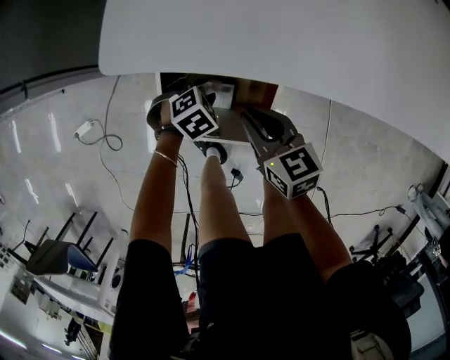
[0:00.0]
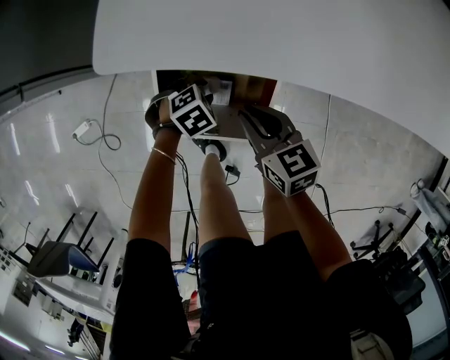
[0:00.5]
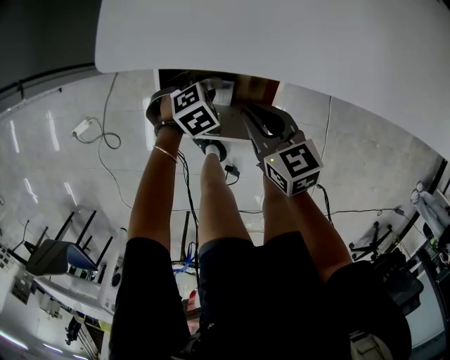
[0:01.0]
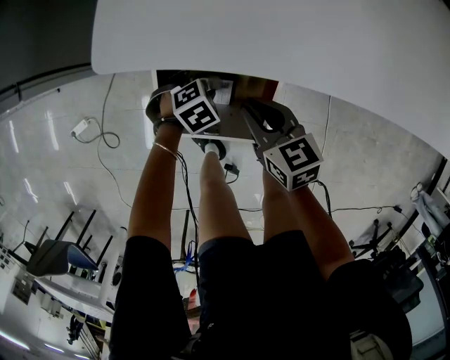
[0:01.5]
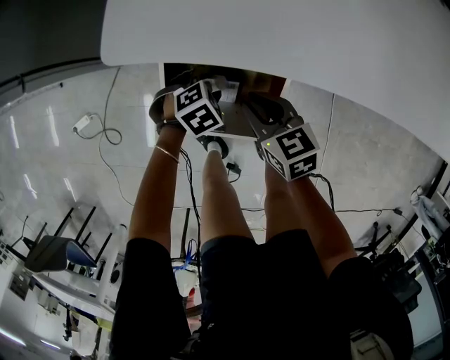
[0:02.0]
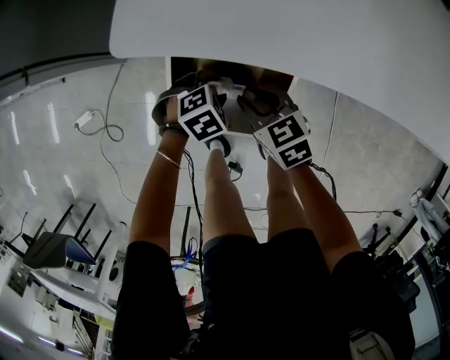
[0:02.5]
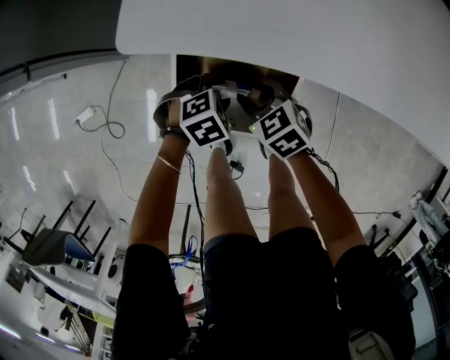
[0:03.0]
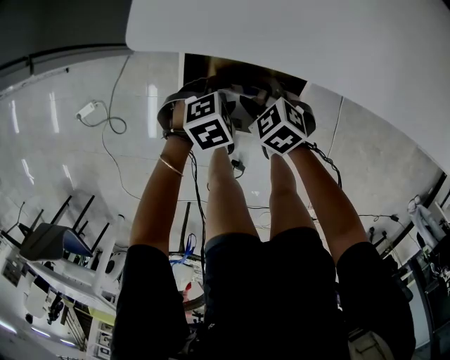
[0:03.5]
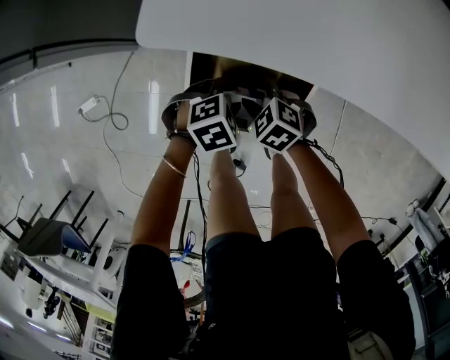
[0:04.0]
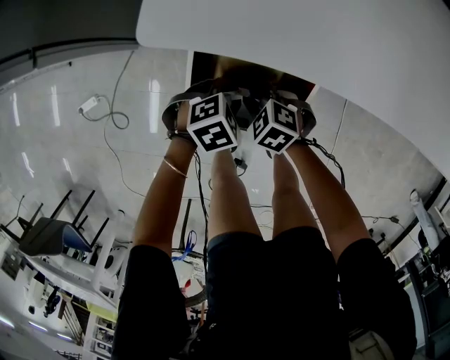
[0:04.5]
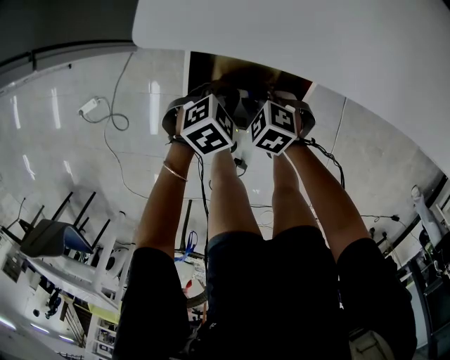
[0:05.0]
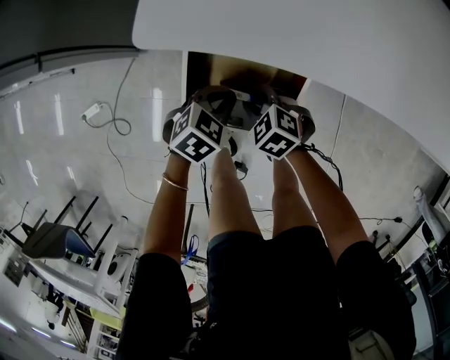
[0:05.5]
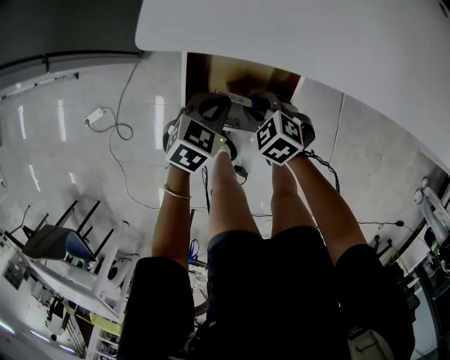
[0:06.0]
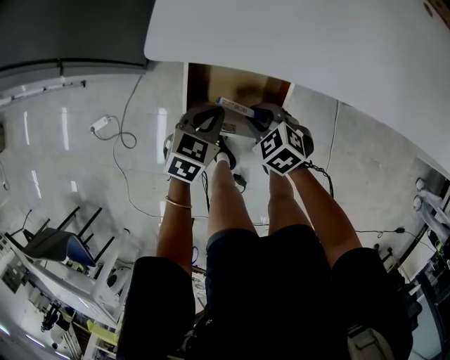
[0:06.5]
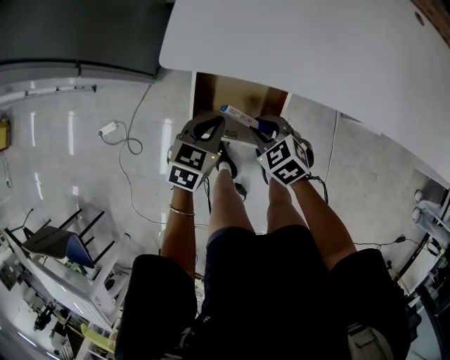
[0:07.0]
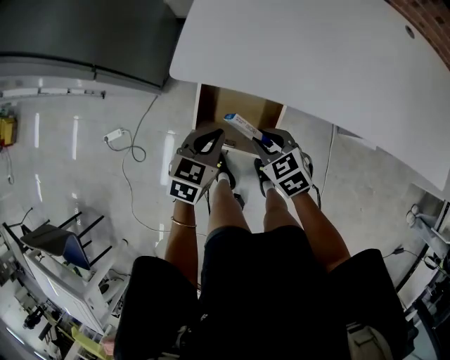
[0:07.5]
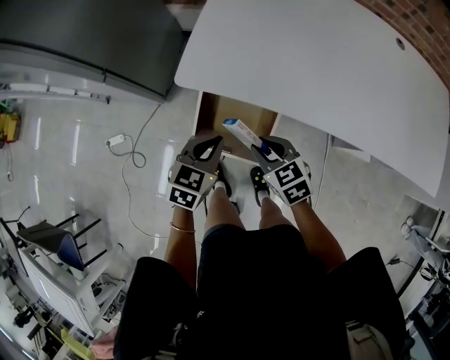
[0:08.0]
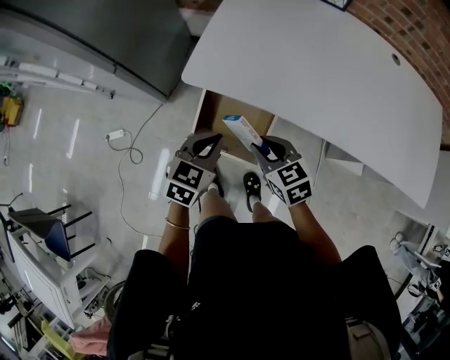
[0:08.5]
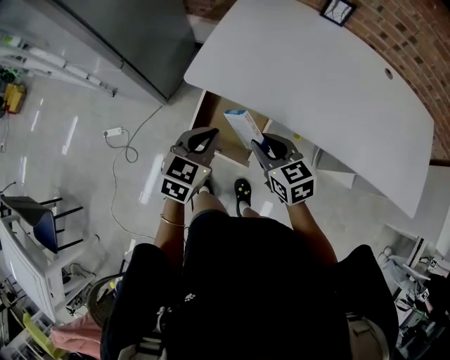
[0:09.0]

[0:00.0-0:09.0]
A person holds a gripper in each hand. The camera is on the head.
0:00.0 to 0:02.0: The grippers make only small movements.
0:02.0 to 0:04.5: The left gripper ends up about 5 cm from where it was. Meanwhile the right gripper is displaced downward by approximately 10 cm, and rotates around the line of its fingers by roughly 40 degrees, counterclockwise from behind.
0:04.5 to 0:07.0: The grippers both shift upward by approximately 15 cm. The left gripper turns by some 40 degrees, and closes its fingers; the right gripper turns by approximately 20 degrees.
0:07.0 to 0:09.0: Both grippers move upward, approximately 20 cm. The right gripper turns by approximately 20 degrees.

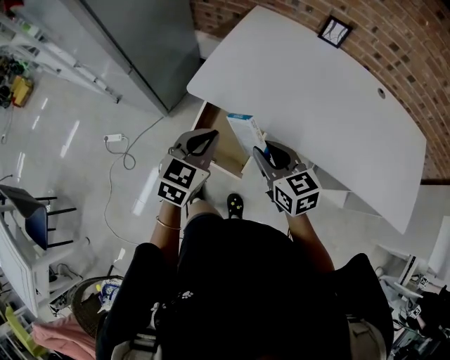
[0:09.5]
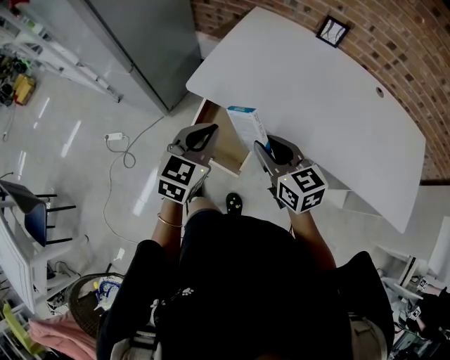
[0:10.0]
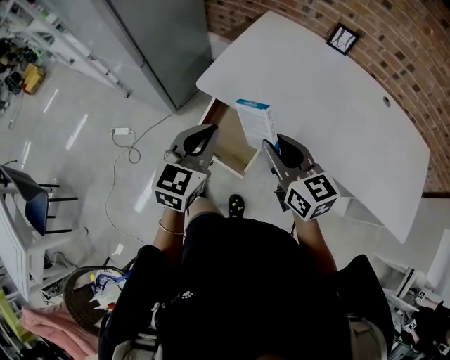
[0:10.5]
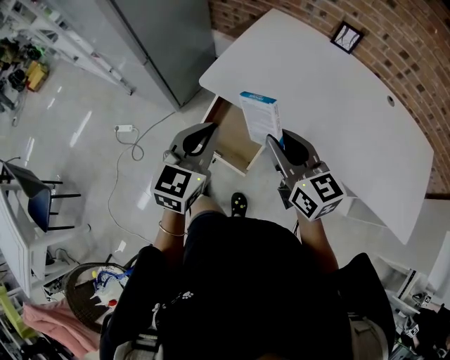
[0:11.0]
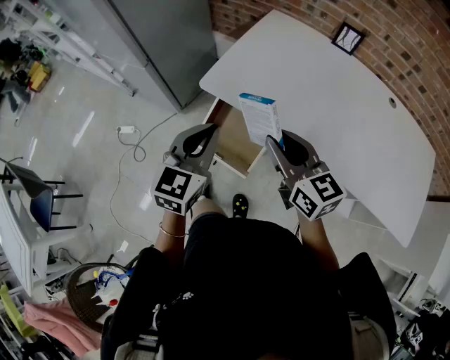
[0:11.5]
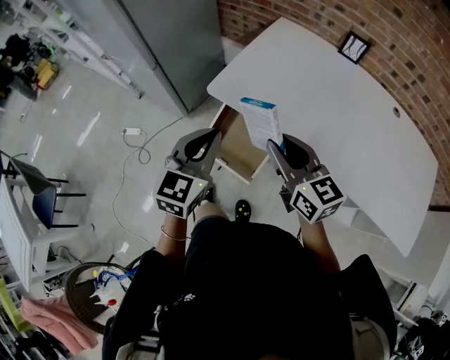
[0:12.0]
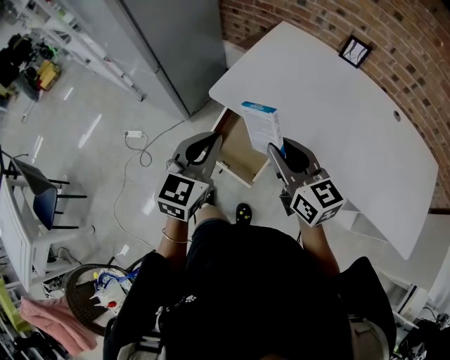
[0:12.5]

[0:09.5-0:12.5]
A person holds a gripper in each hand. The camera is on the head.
0:09.5 to 0:11.0: The grippers both shift upward by about 5 cm.
0:11.0 to 0:12.5: The grippers make only small movements.

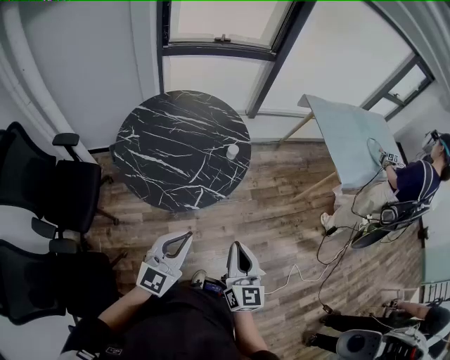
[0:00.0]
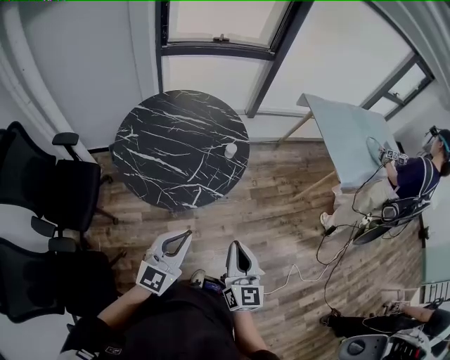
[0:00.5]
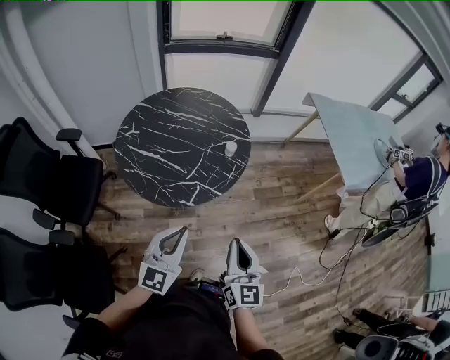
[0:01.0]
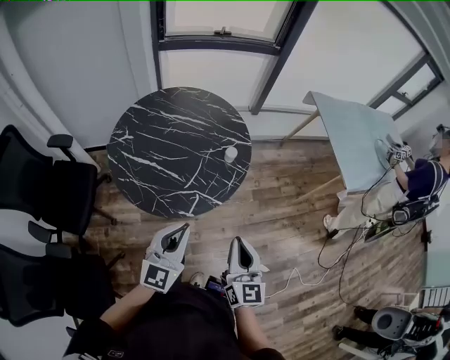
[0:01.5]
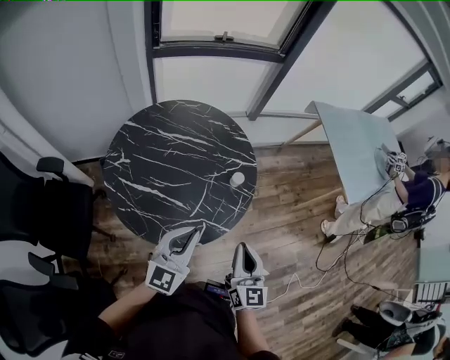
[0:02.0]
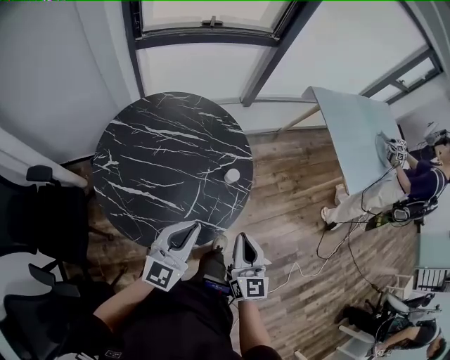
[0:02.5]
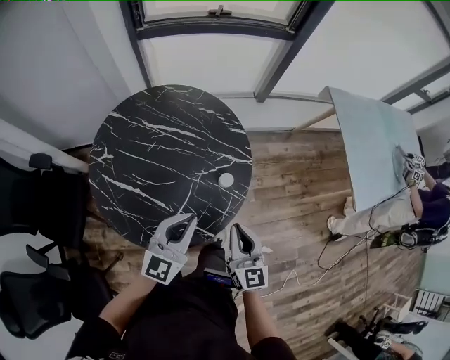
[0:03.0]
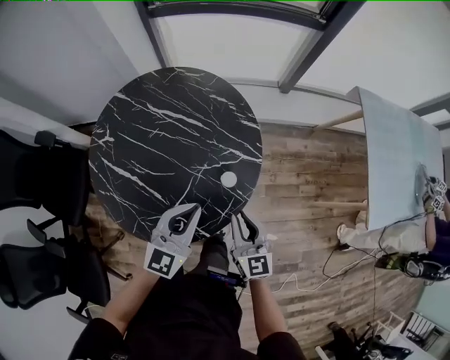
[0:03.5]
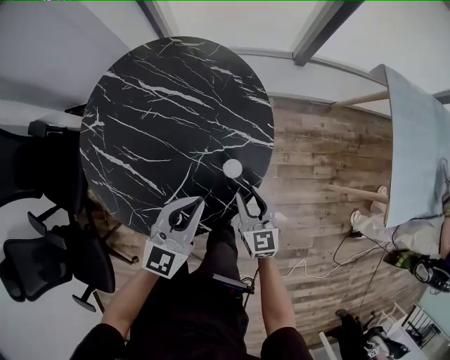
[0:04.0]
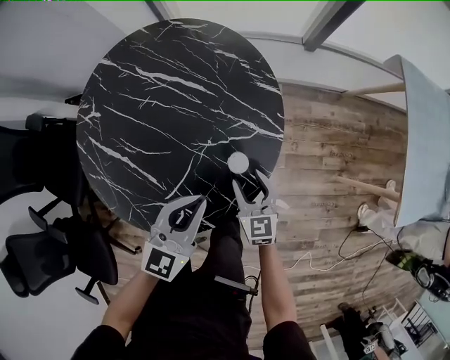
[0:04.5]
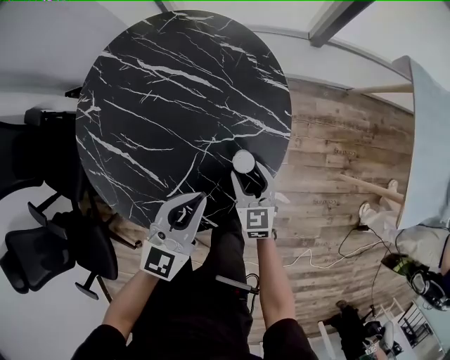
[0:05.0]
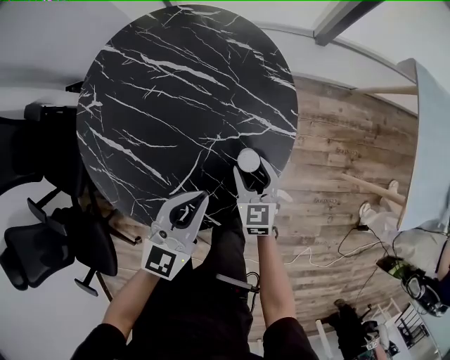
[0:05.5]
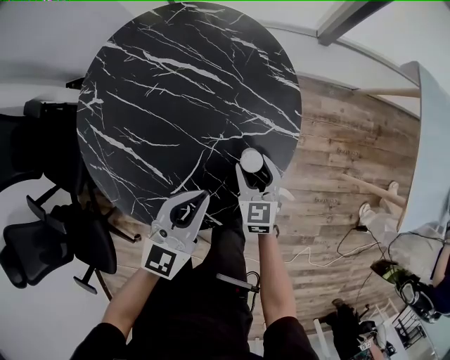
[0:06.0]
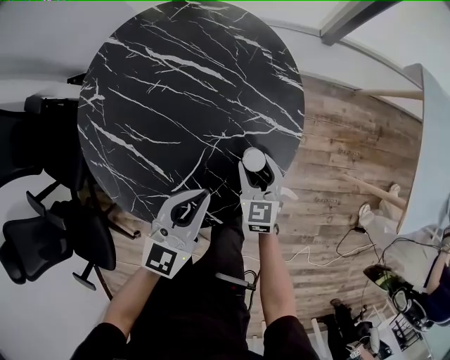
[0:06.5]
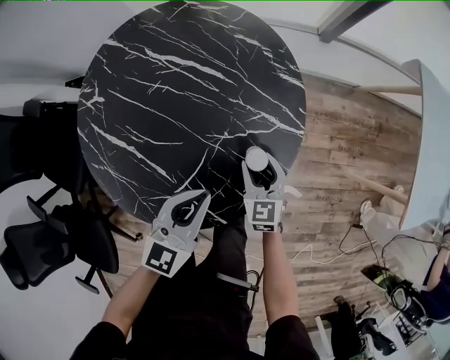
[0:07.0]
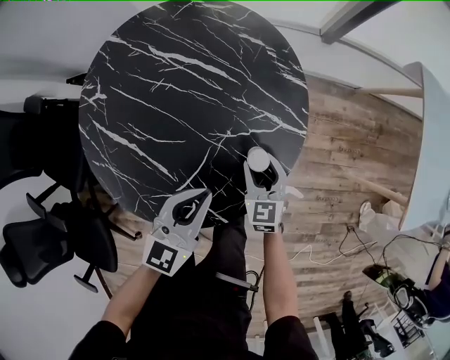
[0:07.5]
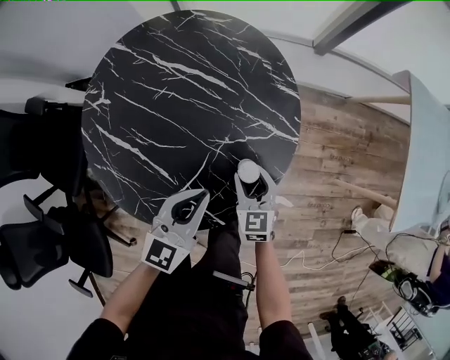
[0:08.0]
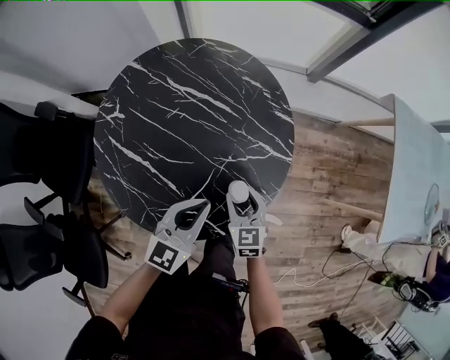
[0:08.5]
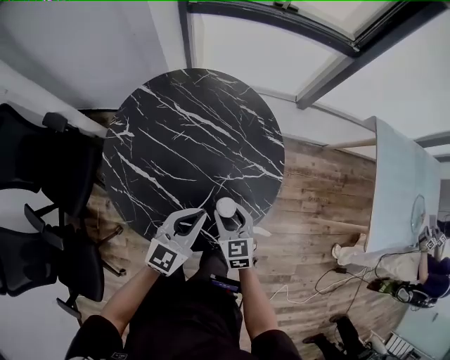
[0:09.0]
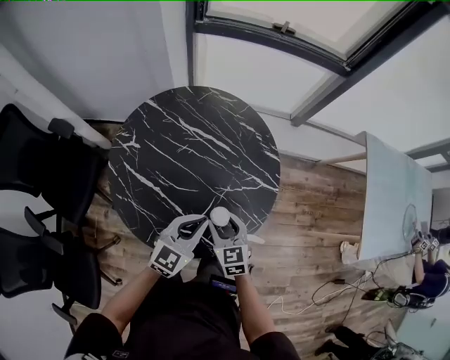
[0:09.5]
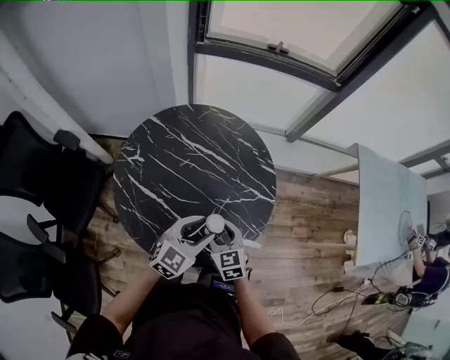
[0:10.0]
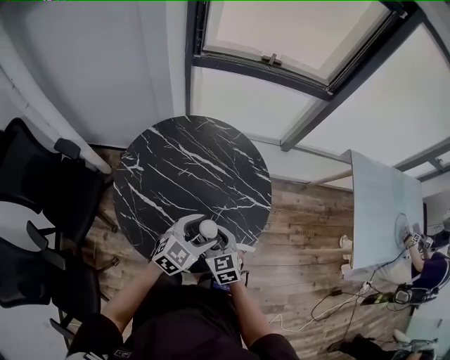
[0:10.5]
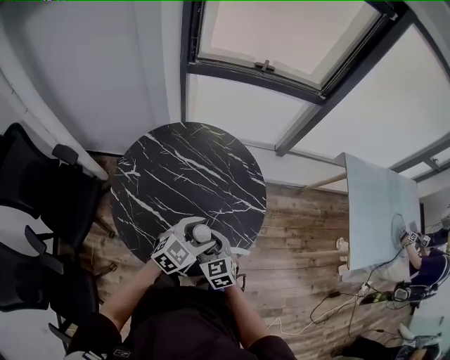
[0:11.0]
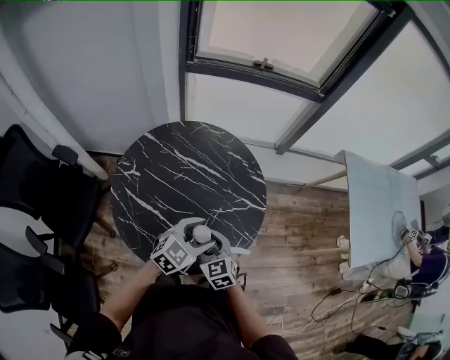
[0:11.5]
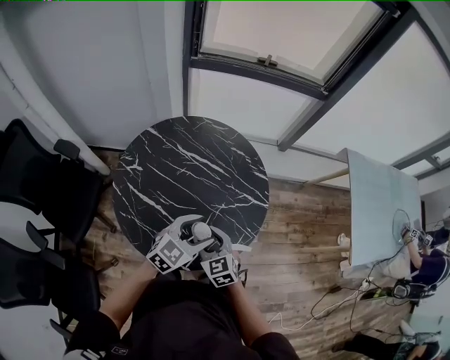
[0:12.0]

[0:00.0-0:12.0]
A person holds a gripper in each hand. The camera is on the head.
0:00.0 to 0:02.0: The grippers both shift forward by some 20 cm.
0:02.0 to 0:04.0: The right gripper shifts about 35 cm downward and forward, turns by roughly 30 degrees, and opens its fingers. Meanwhile the left gripper shifts some 25 cm forward, downward and to the right.
0:04.0 to 0:06.0: The right gripper heads downward and forward, covering roughly 10 cm, and opens its fingers.
0:06.0 to 0:08.0: The grippers stay close to where they were, moving slightly.
0:08.0 to 0:10.0: The right gripper moves upward and to the left, some 20 cm; the left gripper heads upward, covering about 10 cm, and opens.
0:10.0 to 0:12.0: The right gripper shifts by roughly 5 cm.

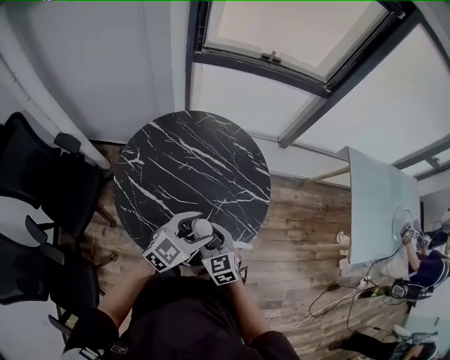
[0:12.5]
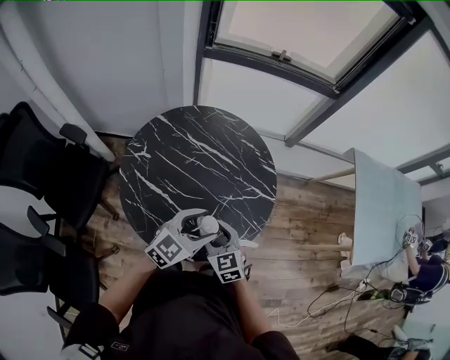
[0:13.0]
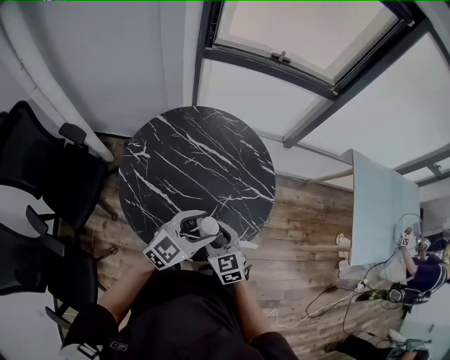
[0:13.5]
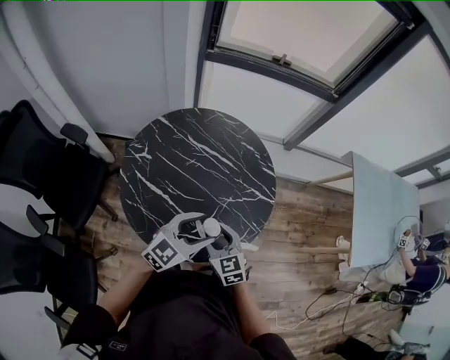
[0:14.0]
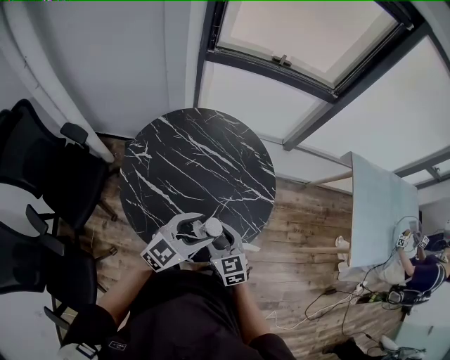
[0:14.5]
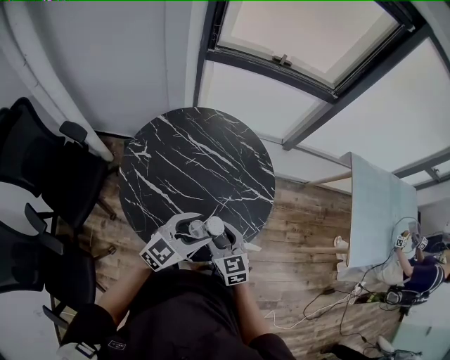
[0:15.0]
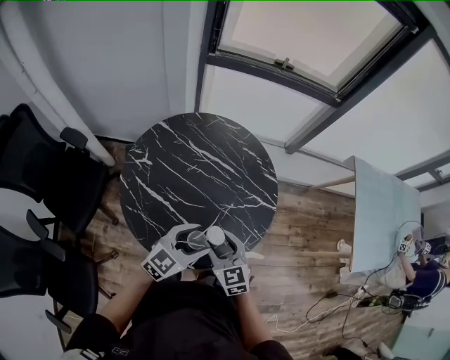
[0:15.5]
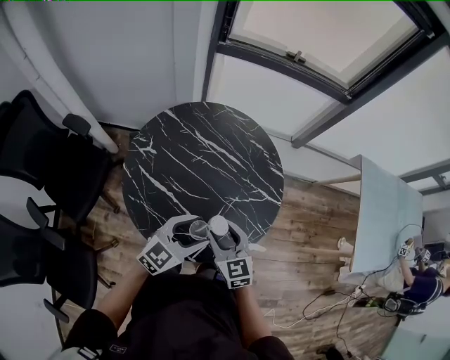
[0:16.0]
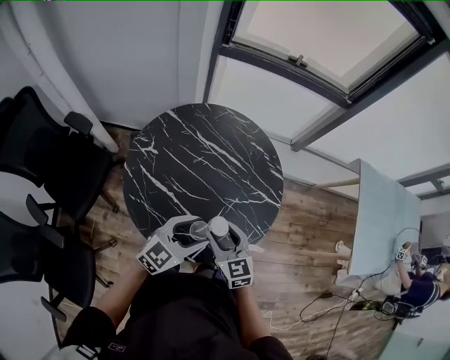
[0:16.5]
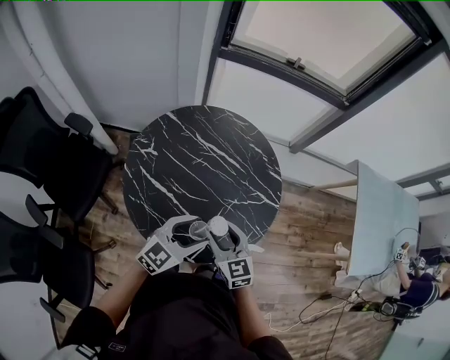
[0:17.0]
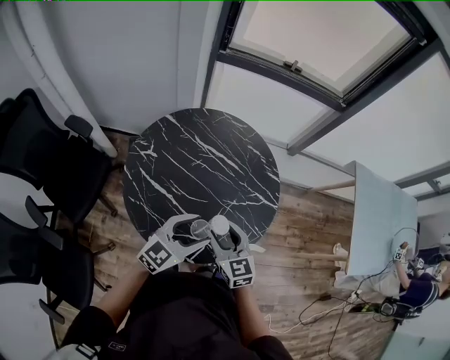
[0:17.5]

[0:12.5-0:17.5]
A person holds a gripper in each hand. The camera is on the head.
0:12.5 to 0:17.5: The grippers stay close to where they were, moving slightly.
